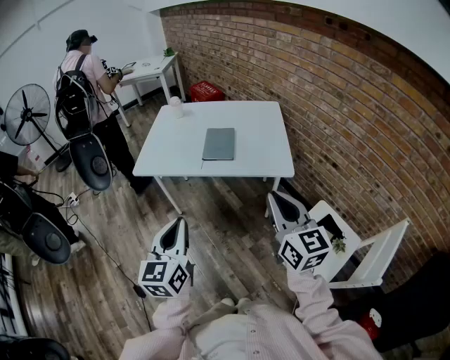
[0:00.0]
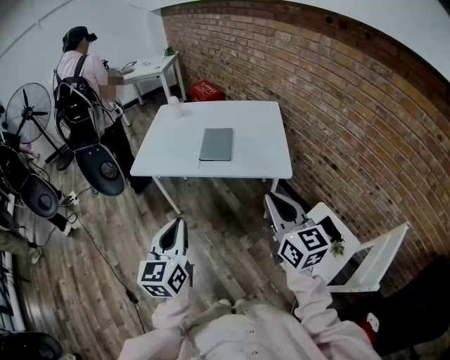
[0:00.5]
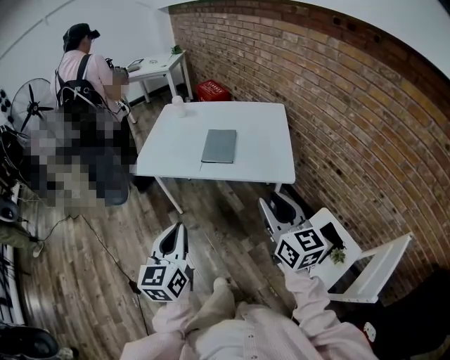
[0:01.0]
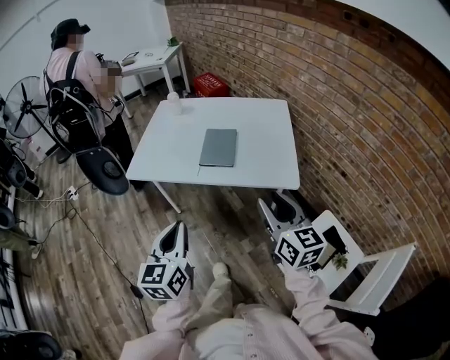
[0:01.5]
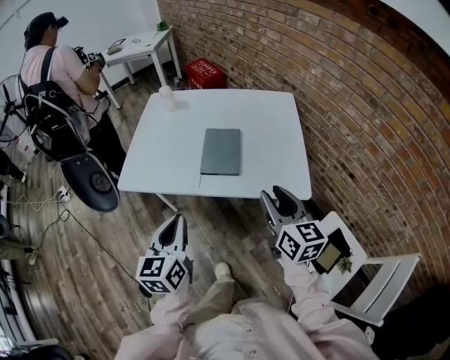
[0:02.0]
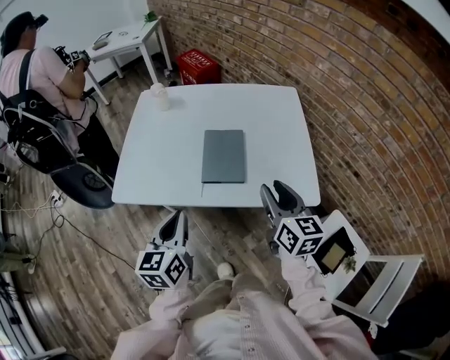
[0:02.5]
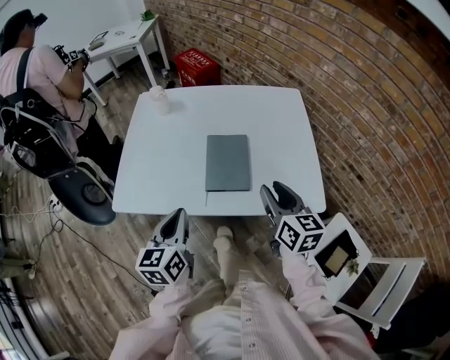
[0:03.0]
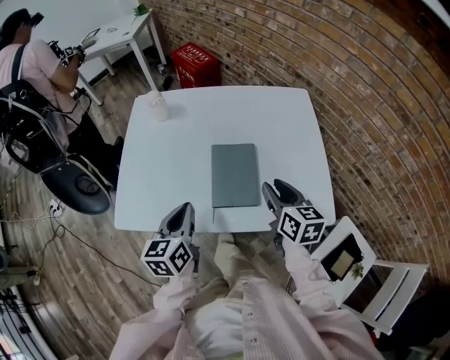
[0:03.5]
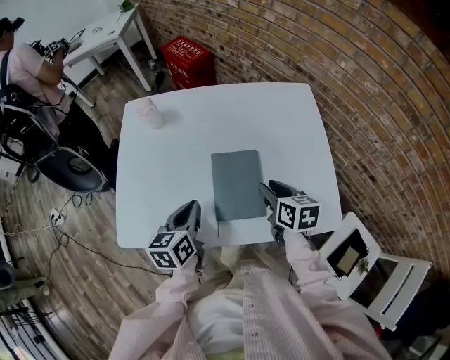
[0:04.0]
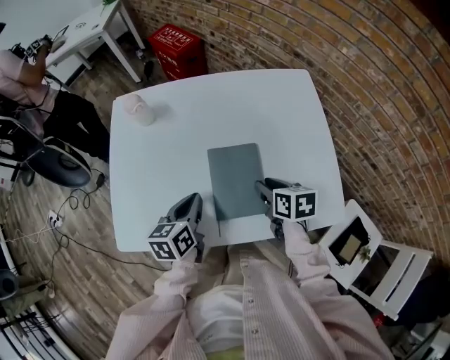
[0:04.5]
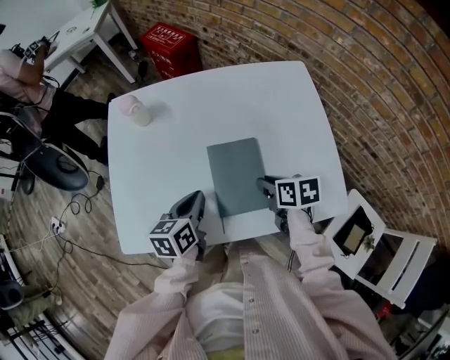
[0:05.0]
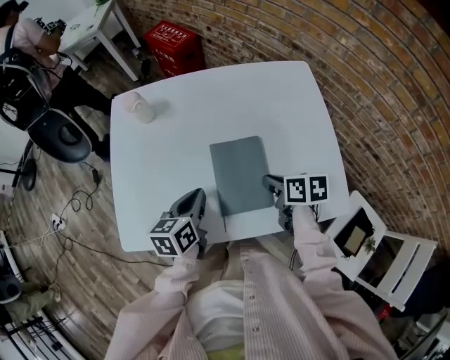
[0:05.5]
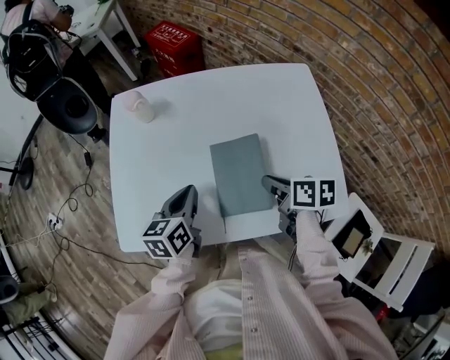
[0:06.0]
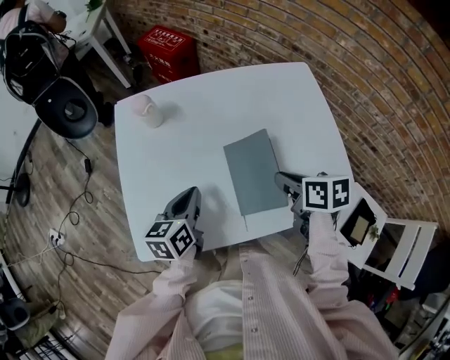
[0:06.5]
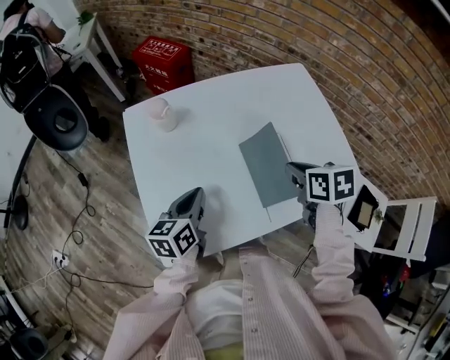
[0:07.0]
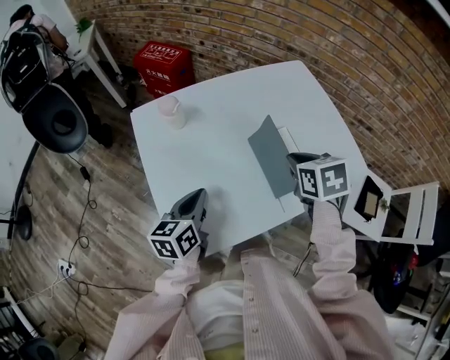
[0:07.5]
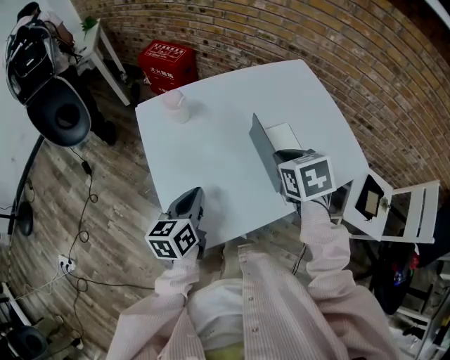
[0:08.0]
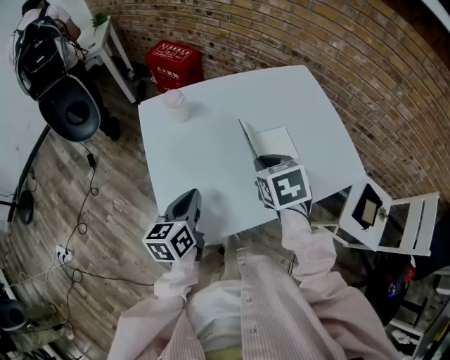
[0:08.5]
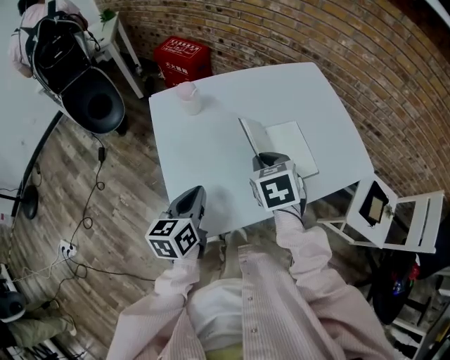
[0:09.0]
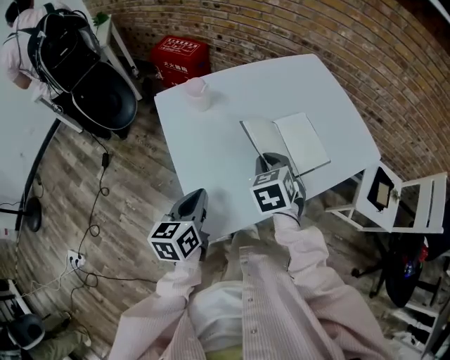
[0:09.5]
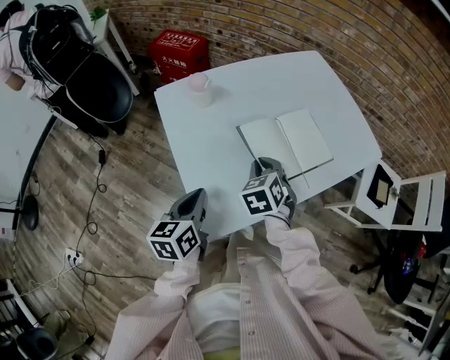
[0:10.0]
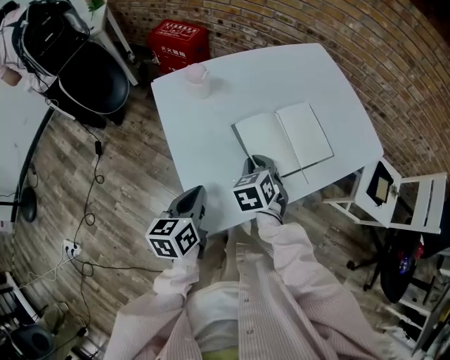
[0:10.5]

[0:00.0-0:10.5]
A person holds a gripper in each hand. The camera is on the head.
0:00.0 to 0:02.0: The right gripper is displaced forward and downward by about 25 cm, and opens; the left gripper heads forward, covering about 20 cm.
0:02.0 to 0:04.0: Both grippers move forward and downward, some 30 cm. The right gripper swivels approximately 30 degrees, while the left gripper rotates some 20 degrees.
0:04.0 to 0:06.5: The left gripper is displaced to the left by roughly 5 cm, while the right gripper shifts by roughly 5 cm, and closes.
0:06.5 to 0:08.5: The left gripper travels to the left and backward by roughly 10 cm. Meanwhile the right gripper moves to the left, some 15 cm, and swivels about 30 degrees.
0:08.5 to 0:10.5: The left gripper moves to the left, about 10 cm; the right gripper heads downward and to the left, covering some 15 cm.

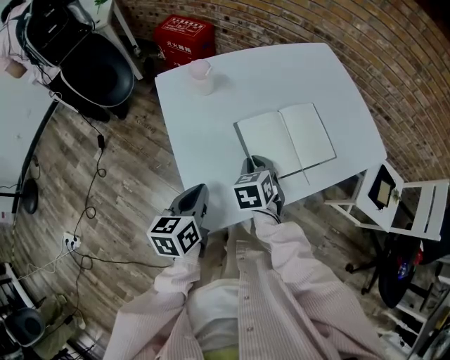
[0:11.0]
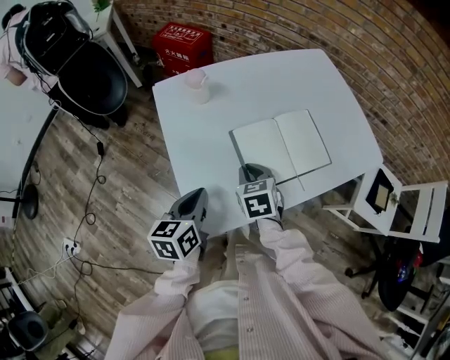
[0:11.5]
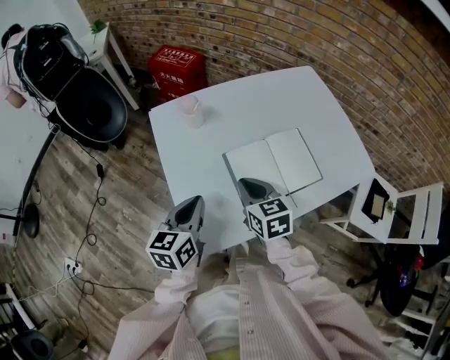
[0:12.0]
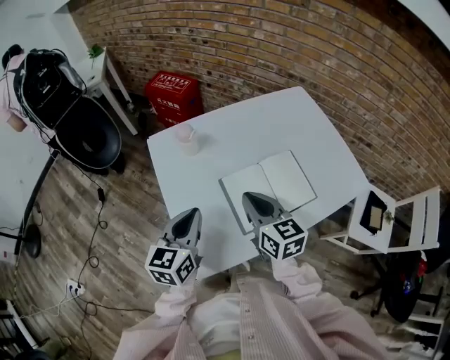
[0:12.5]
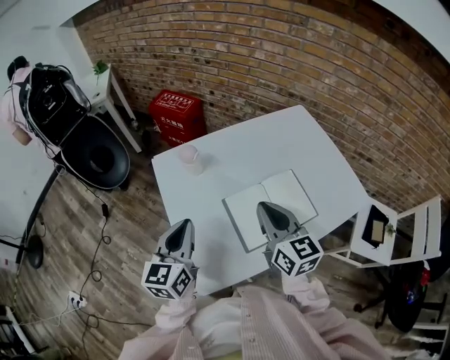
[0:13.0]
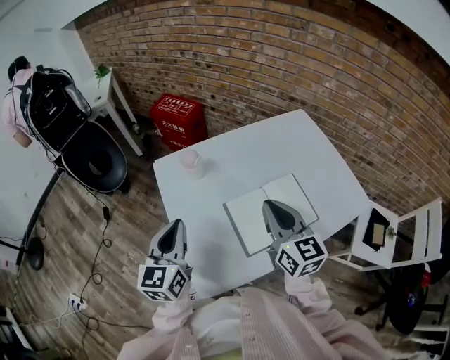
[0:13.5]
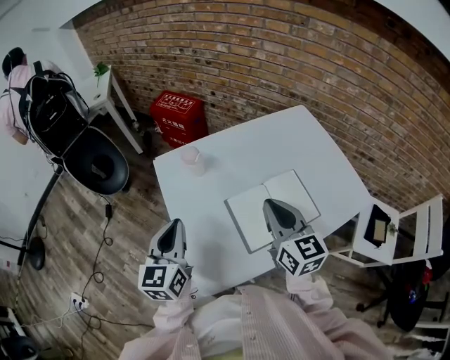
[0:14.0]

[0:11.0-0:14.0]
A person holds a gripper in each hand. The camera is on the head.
0:11.0 to 0:12.5: The right gripper heads upward, covering some 15 cm, and angles its fingers upward, by some 30 degrees; the left gripper shifts some 10 cm upward and forward, and swivels some 20 degrees.
0:12.5 to 0:14.0: The left gripper heads to the left, covering some 5 cm, while the right gripper moves upward, some 5 cm.

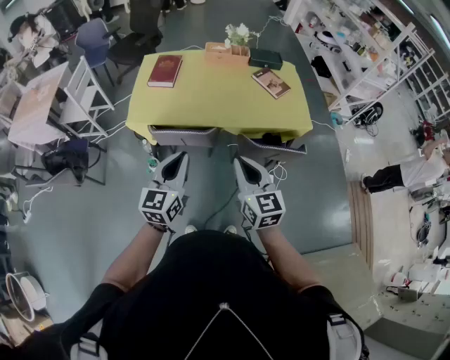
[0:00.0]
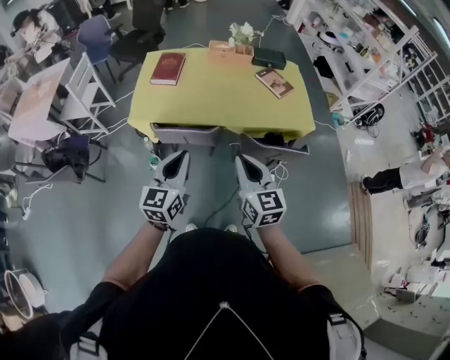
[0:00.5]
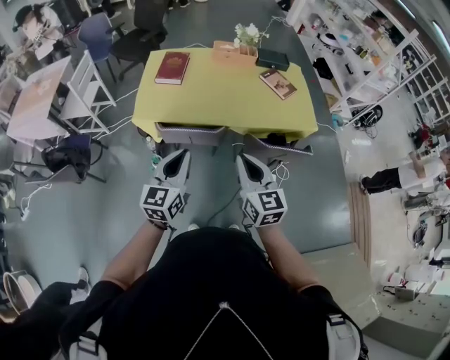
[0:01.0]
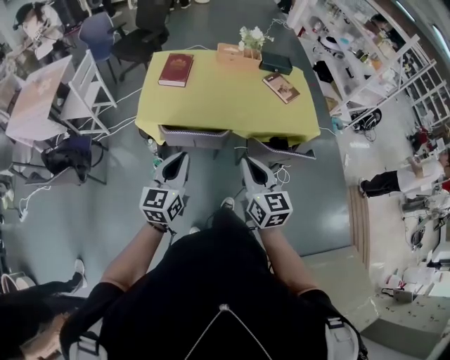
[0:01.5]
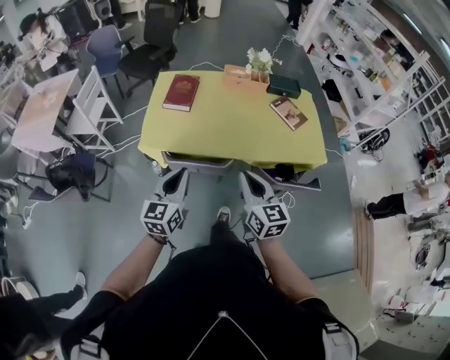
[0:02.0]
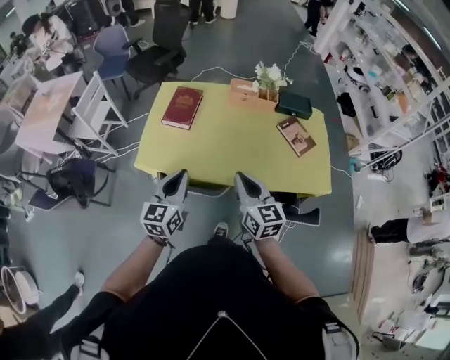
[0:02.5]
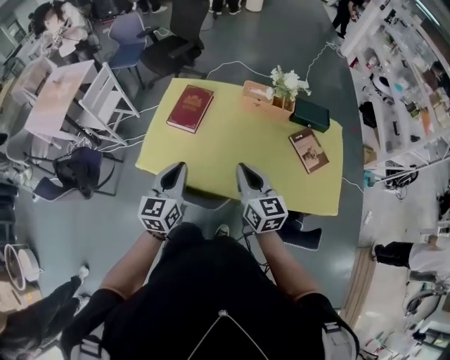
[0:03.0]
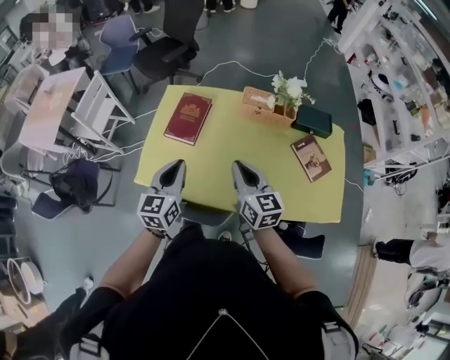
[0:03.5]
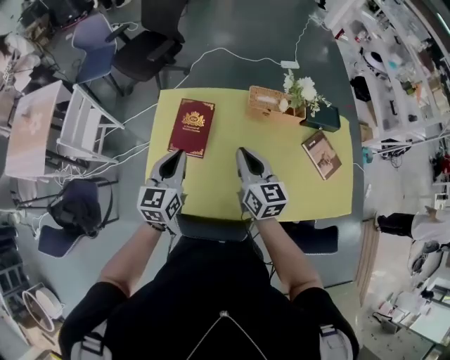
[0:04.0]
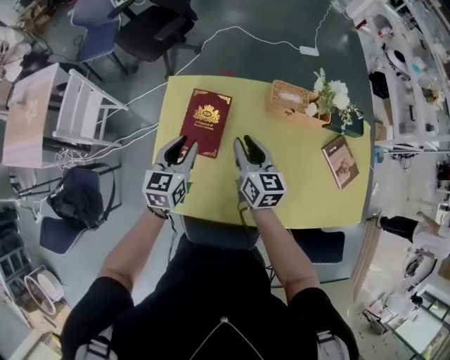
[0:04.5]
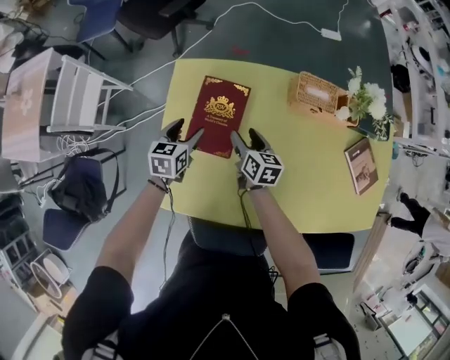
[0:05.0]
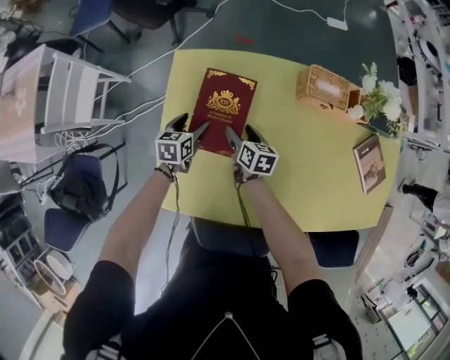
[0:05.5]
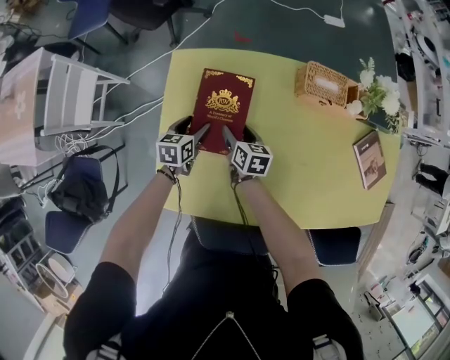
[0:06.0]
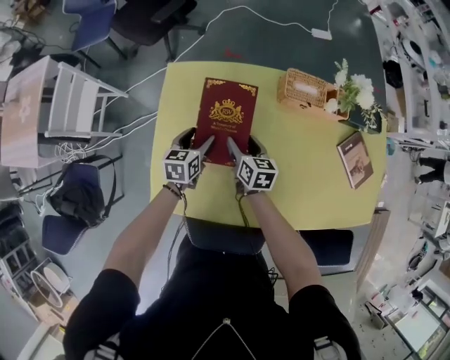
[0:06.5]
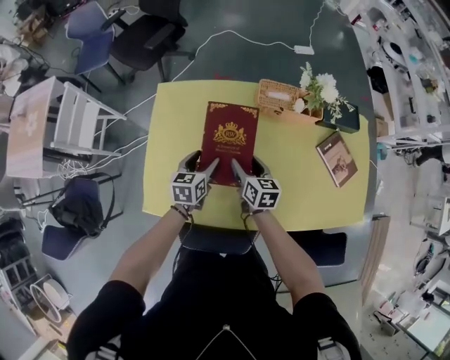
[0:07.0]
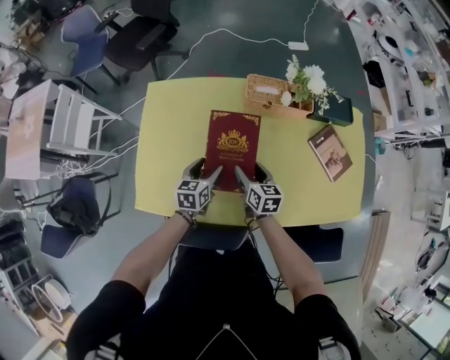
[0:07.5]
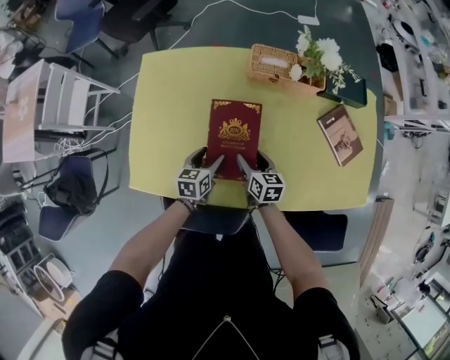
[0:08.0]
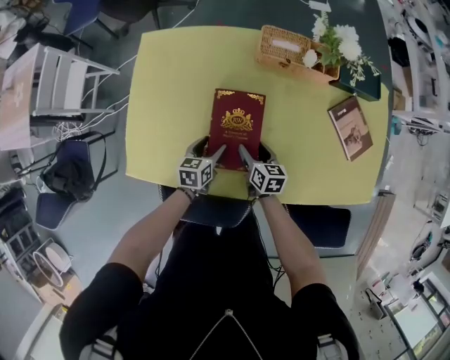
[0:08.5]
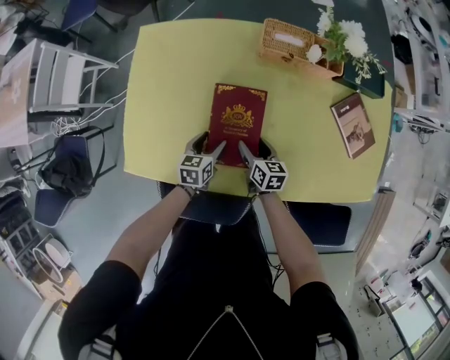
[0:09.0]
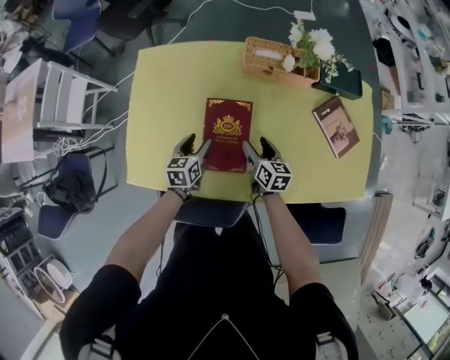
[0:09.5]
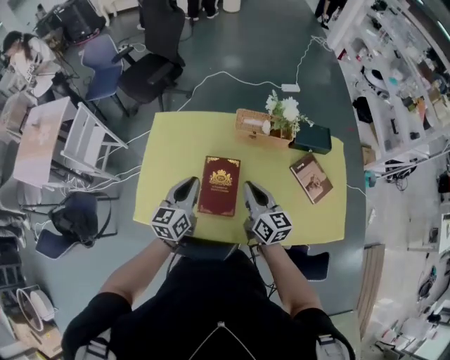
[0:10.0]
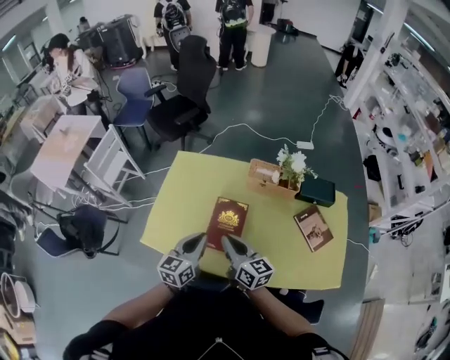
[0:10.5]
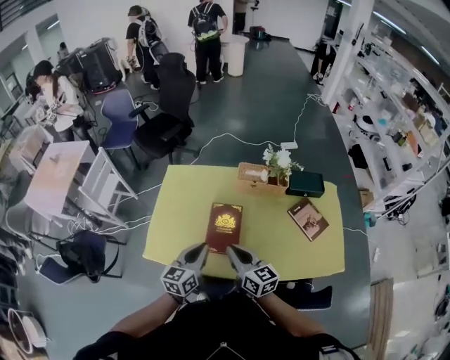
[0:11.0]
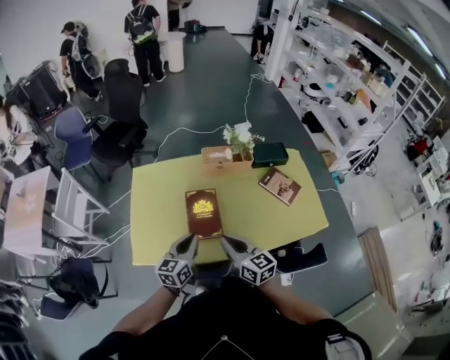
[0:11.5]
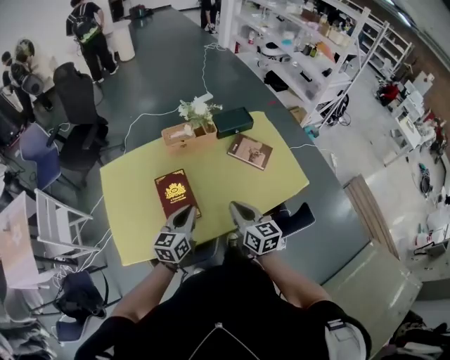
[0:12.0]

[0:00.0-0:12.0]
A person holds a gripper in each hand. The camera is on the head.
0:00.0 to 0:02.0: Both grippers travel together forward and to the left, about 15 cm.
0:02.0 to 0:04.0: The two grippers travel together, forward, approximately 50 cm.
0:04.0 to 0:06.0: The two grippers go roughly 40 cm downward and forward. The left gripper rotates about 30 degrees, and opens. Meanwhile the right gripper rotates some 30 degrees, and opens its fingers.
0:06.0 to 0:08.0: Both grippers travel together to the right and backward, about 30 cm.
0:08.0 to 0:10.0: Both grippers travel together upward, about 25 cm. The left gripper swivels approximately 30 degrees, and closes up, while the right gripper turns by approximately 30 degrees, and closes.
0:10.0 to 0:12.0: The right gripper changes place by about 20 cm, and rotates some 20 degrees. The left gripper shifts by approximately 20 cm, and swivels roughly 30 degrees.

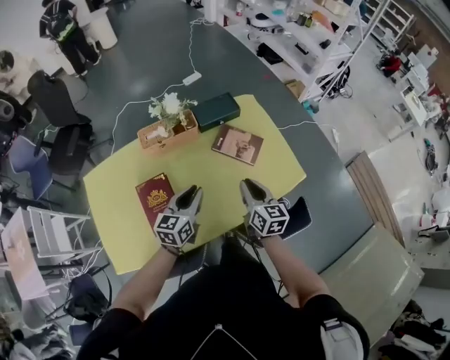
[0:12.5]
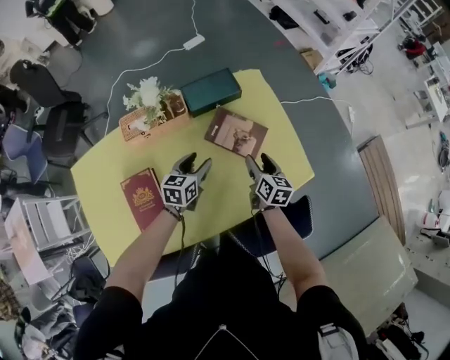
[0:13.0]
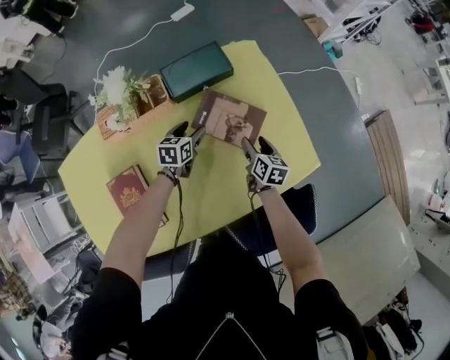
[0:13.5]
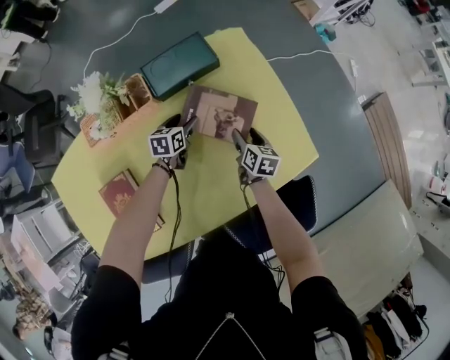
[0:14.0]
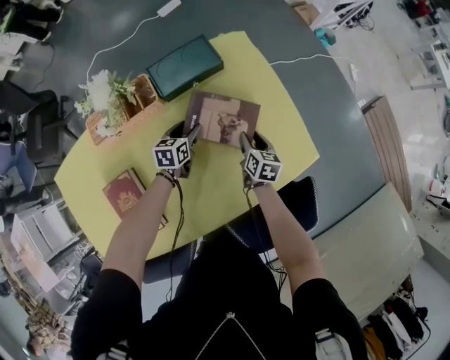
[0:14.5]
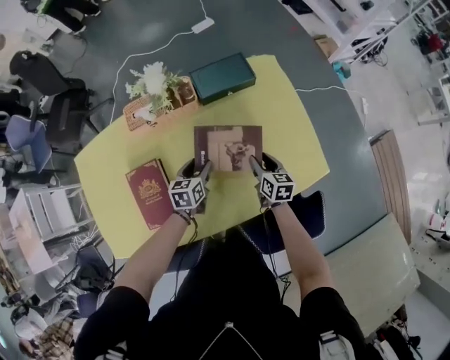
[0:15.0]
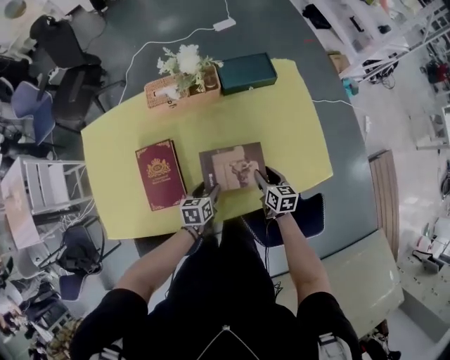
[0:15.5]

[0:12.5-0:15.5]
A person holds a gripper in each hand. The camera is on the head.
0:12.5 to 0:14.0: The two grippers go some 40 cm downward and forward. The right gripper rotates approximately 30 degrees, and opens; the left gripper turns by approximately 30 degrees, and opens up.
0:14.0 to 0:15.5: The right gripper travels backward, to the left and upward by about 20 cm, and swivels roughly 30 degrees. Meanwhile the left gripper moves backward, roughly 30 cm.
